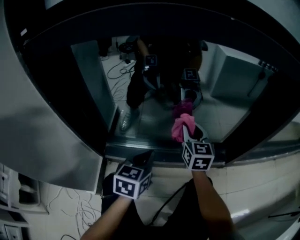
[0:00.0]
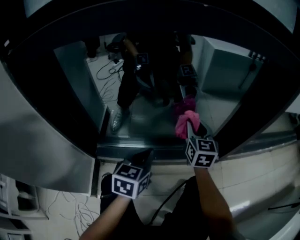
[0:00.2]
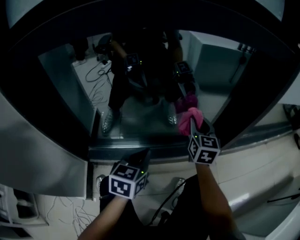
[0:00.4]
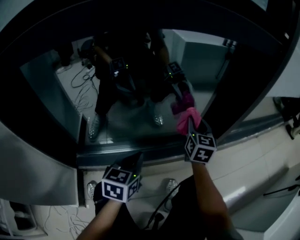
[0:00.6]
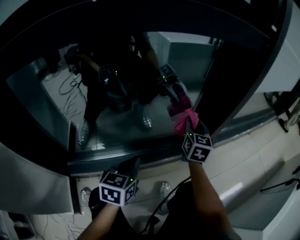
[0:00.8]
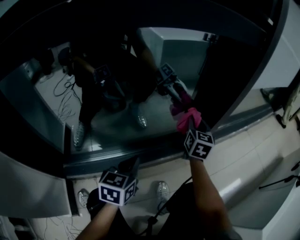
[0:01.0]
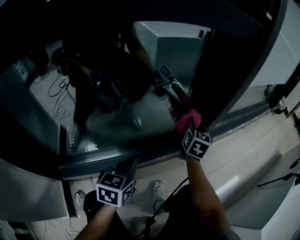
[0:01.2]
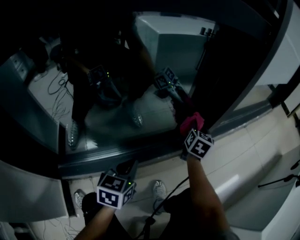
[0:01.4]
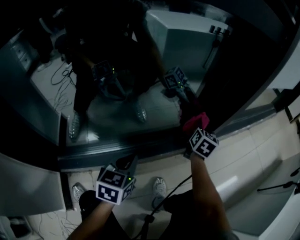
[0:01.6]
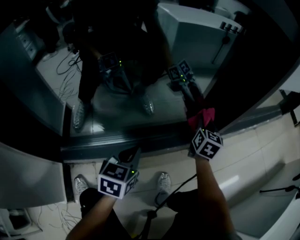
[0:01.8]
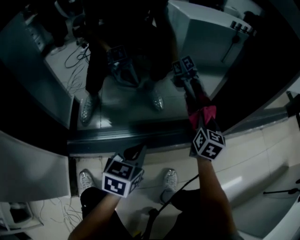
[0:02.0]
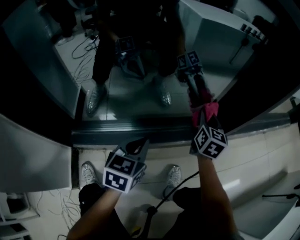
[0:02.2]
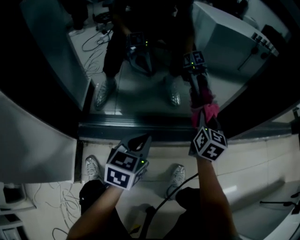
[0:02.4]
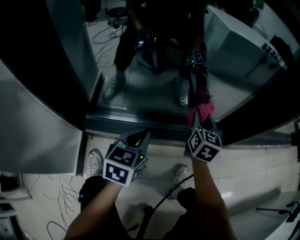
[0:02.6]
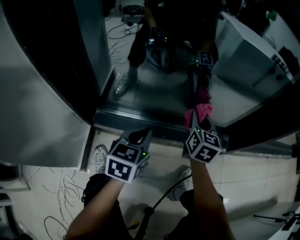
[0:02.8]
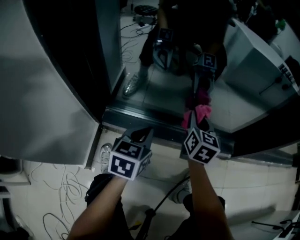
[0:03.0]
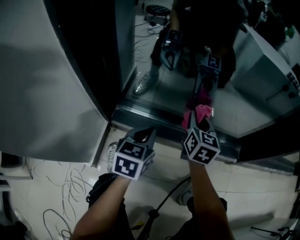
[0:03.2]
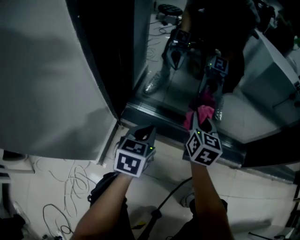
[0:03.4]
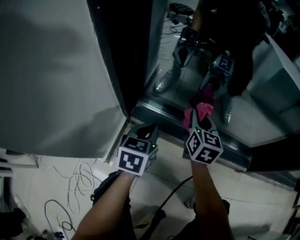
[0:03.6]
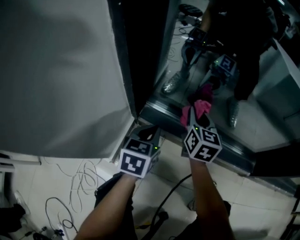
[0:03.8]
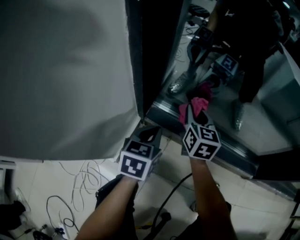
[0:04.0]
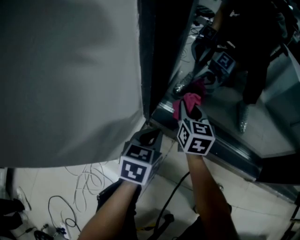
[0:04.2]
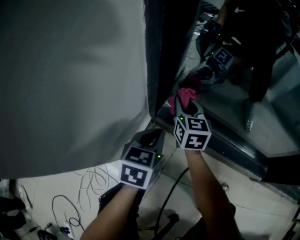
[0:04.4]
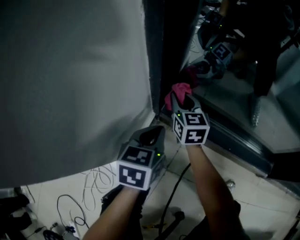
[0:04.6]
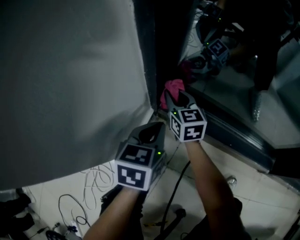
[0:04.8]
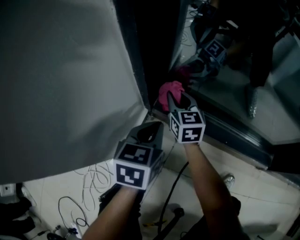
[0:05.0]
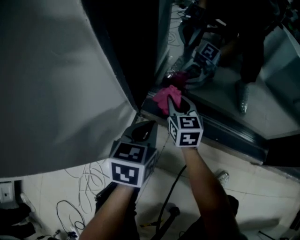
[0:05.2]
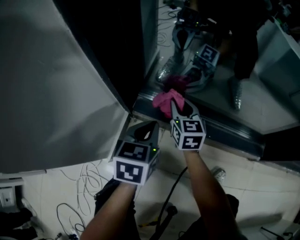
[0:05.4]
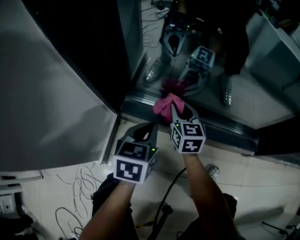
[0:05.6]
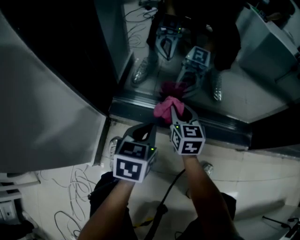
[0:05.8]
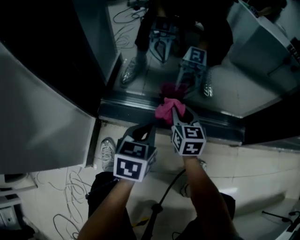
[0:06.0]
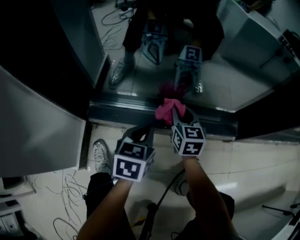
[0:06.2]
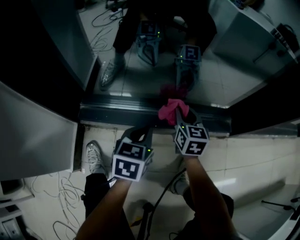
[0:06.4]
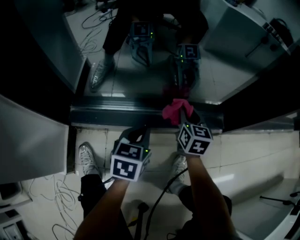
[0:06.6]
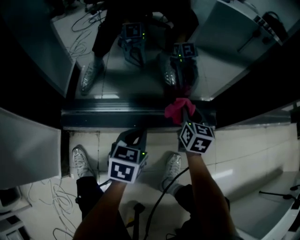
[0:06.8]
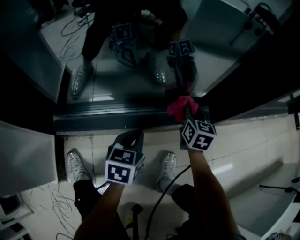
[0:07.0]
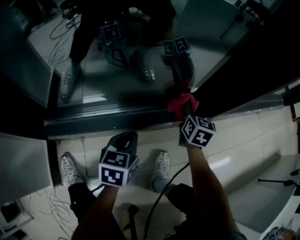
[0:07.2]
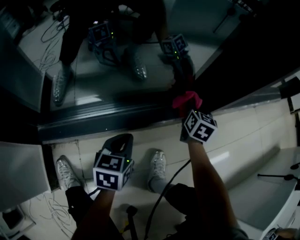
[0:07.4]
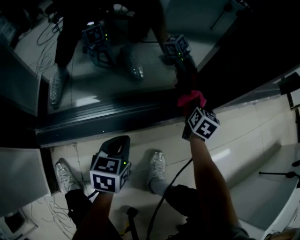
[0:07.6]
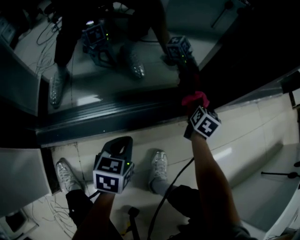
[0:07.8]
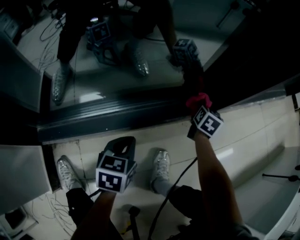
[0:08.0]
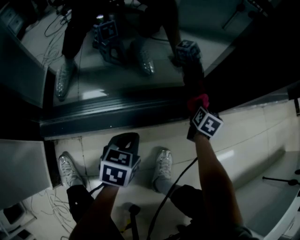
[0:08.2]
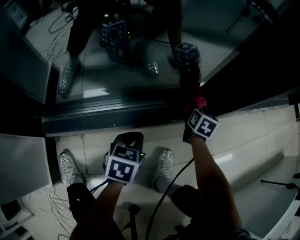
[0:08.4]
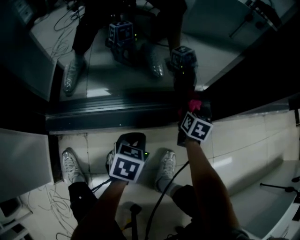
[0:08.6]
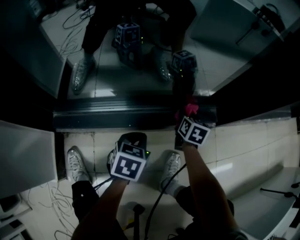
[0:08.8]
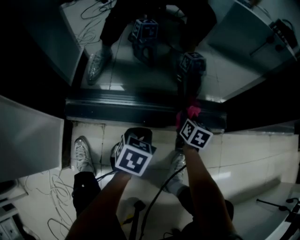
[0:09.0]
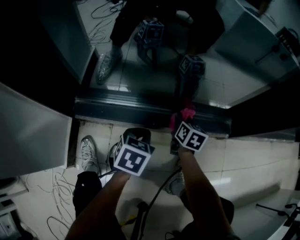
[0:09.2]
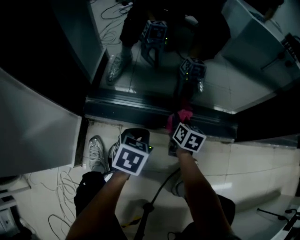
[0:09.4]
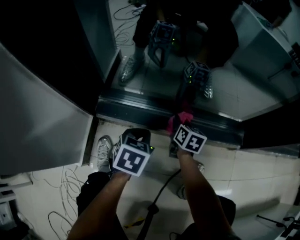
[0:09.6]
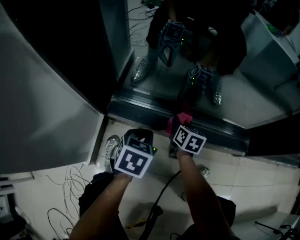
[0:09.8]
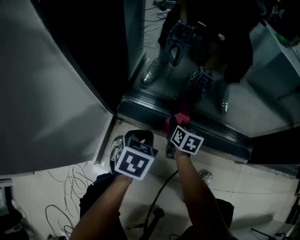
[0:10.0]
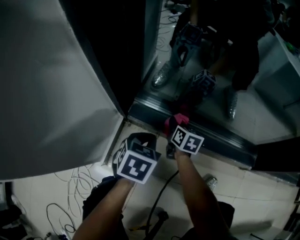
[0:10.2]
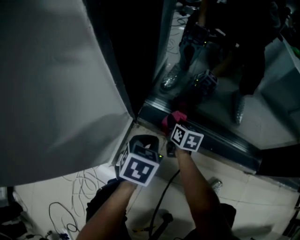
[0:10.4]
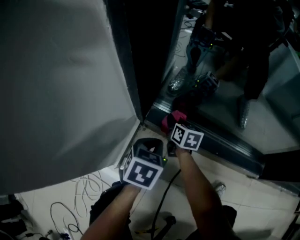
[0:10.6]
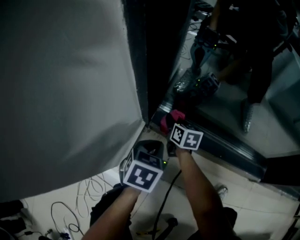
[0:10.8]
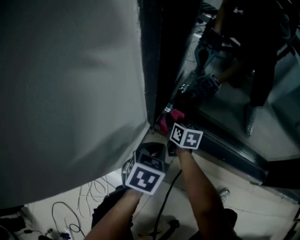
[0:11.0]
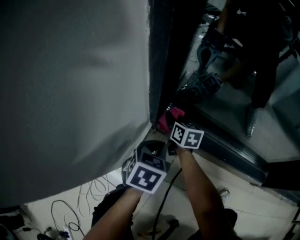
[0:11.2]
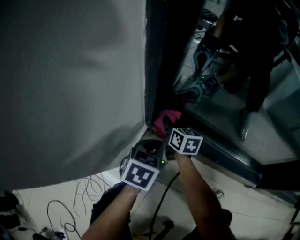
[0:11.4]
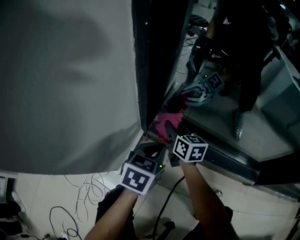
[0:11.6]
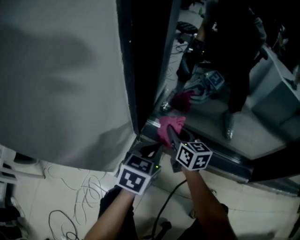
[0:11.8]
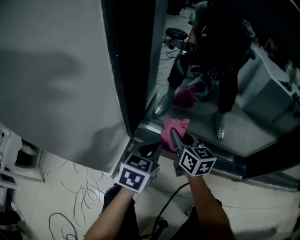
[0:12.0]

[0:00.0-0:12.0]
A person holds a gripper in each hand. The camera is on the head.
0:00.0 to 0:01.6: The left gripper shifts by about 20 cm, and swivels approximately 20 degrees; the right gripper shifts by roughly 40 cm, and changes its angle by about 50 degrees.
0:01.6 to 0:03.0: The left gripper ends up about 25 cm from where it was, and changes its angle by about 30 degrees. Meanwhile the right gripper changes place by roughly 40 cm, and changes its angle by about 40 degrees.
0:03.0 to 0:04.4: The left gripper travels to the left by roughly 20 cm, and swivels roughly 20 degrees, while the right gripper heads to the left, covering approximately 35 cm, and changes its angle by roughly 30 degrees.
0:04.4 to 0:06.0: The two grippers go roughly 25 cm to the right.
0:06.0 to 0:07.6: The right gripper ends up approximately 50 cm from where it was, and turns by roughly 50 degrees. Meanwhile the left gripper moves approximately 25 cm.
0:07.6 to 0:09.0: The left gripper is displaced to the left by approximately 5 cm; the right gripper is displaced to the left and backward by roughly 25 cm, and swivels roughly 30 degrees.
0:09.0 to 0:10.4: The left gripper ends up approximately 30 cm from where it was, and changes its angle by some 20 degrees; the right gripper changes place by some 40 cm, and rotates approximately 30 degrees.
0:10.4 to 0:12.0: The left gripper moves upward, some 15 cm, and swivels roughly 20 degrees. The right gripper travels upward by approximately 25 cm, and turns by approximately 30 degrees.

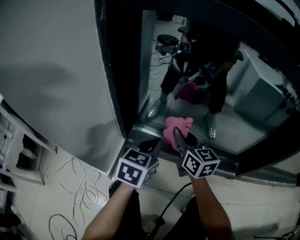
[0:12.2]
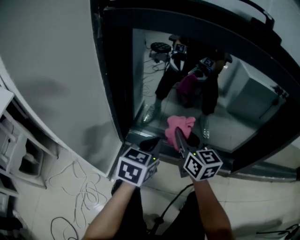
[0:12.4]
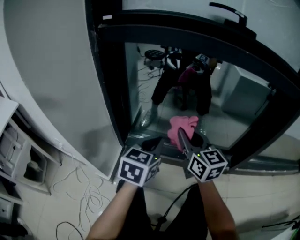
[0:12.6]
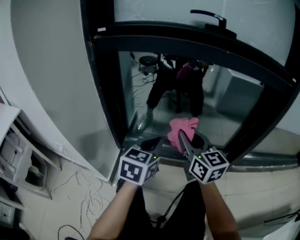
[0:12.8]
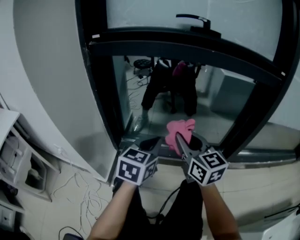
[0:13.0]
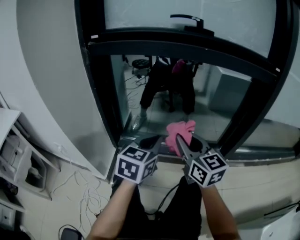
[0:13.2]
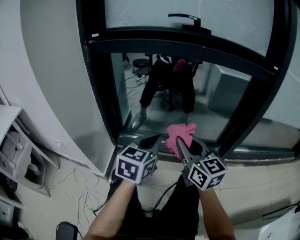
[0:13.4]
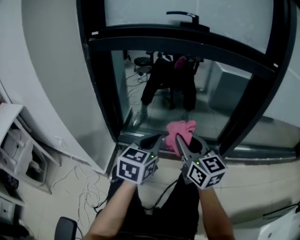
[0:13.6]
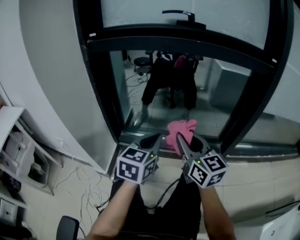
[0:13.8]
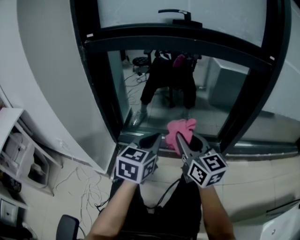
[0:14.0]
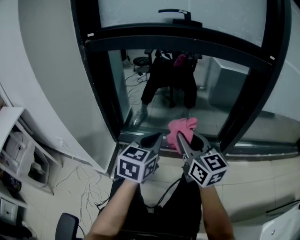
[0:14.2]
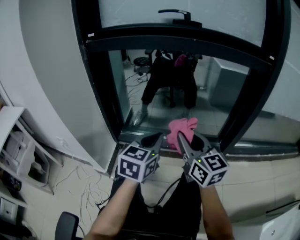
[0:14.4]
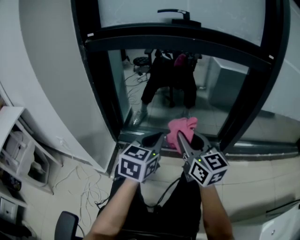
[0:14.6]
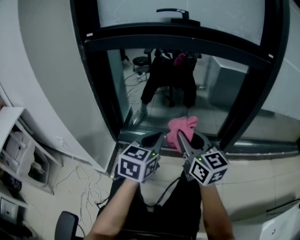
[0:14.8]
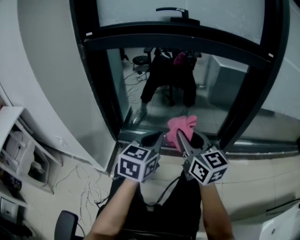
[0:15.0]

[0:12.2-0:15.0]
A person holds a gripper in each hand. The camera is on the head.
0:12.2 to 0:13.6: The grippers both shift backward, upward and to the right by about 25 cm.
0:13.6 to 0:15.0: There are only small adjustments of the grippers.

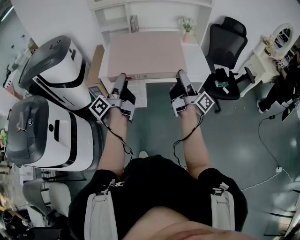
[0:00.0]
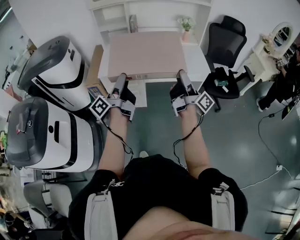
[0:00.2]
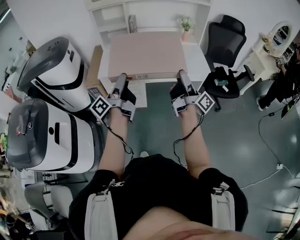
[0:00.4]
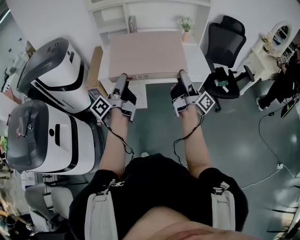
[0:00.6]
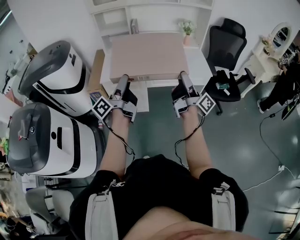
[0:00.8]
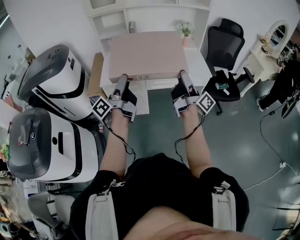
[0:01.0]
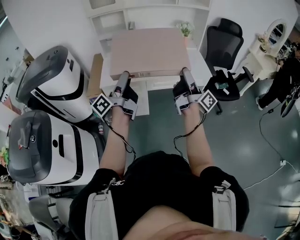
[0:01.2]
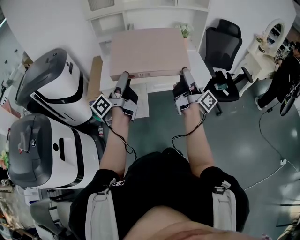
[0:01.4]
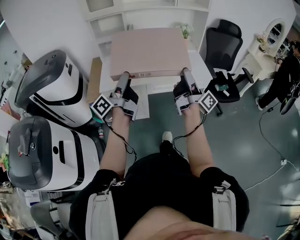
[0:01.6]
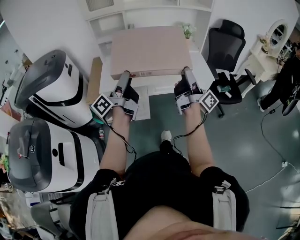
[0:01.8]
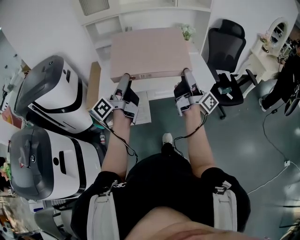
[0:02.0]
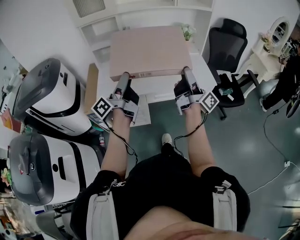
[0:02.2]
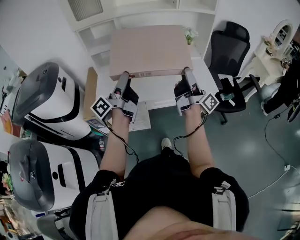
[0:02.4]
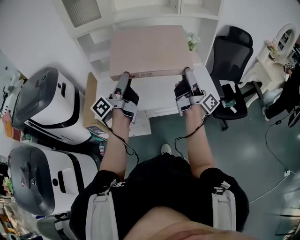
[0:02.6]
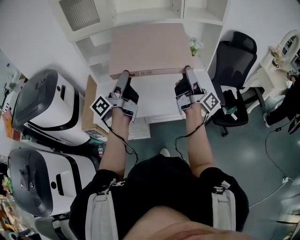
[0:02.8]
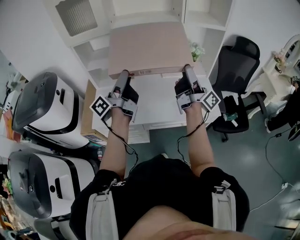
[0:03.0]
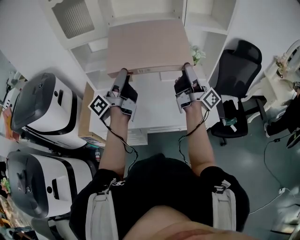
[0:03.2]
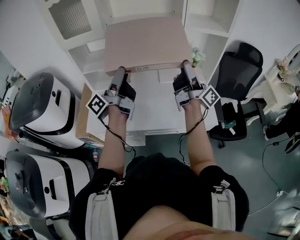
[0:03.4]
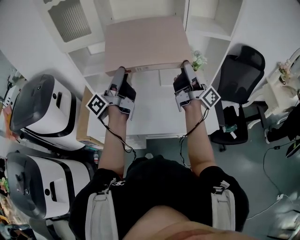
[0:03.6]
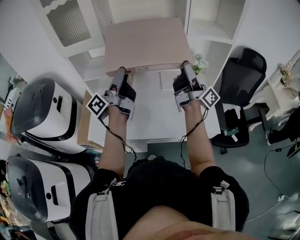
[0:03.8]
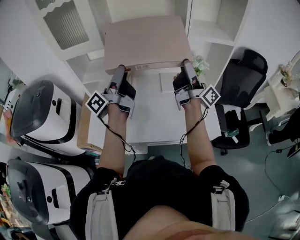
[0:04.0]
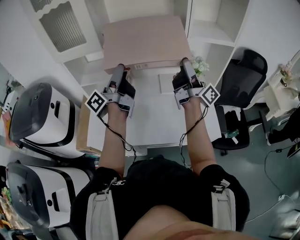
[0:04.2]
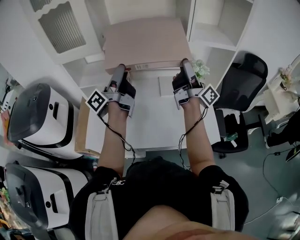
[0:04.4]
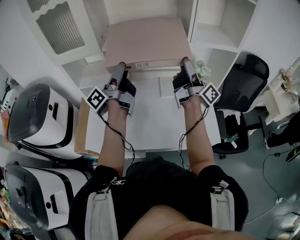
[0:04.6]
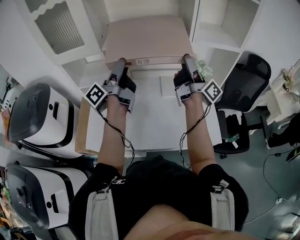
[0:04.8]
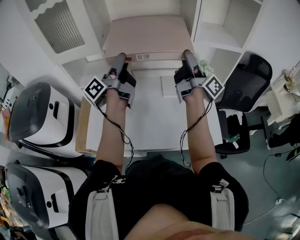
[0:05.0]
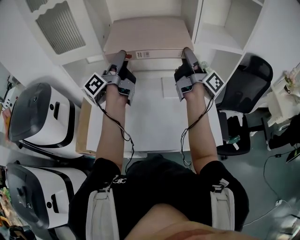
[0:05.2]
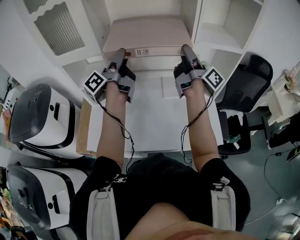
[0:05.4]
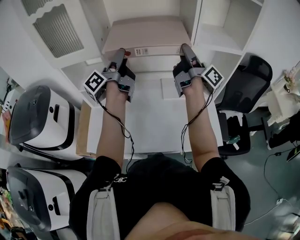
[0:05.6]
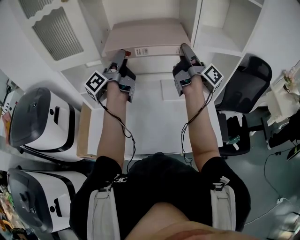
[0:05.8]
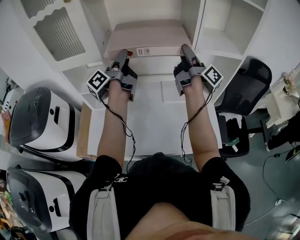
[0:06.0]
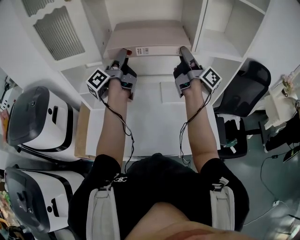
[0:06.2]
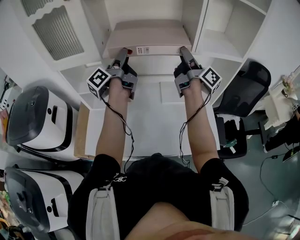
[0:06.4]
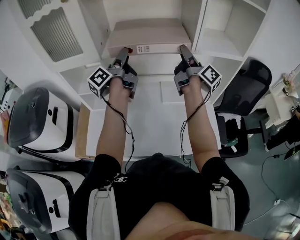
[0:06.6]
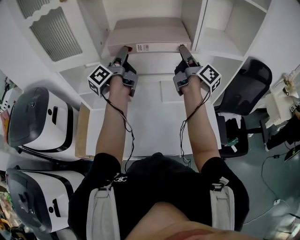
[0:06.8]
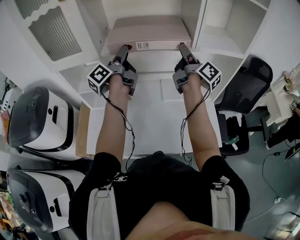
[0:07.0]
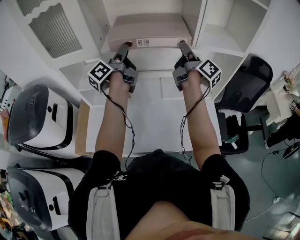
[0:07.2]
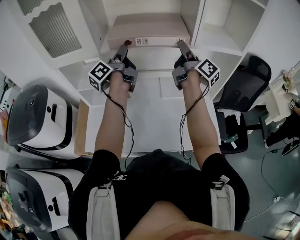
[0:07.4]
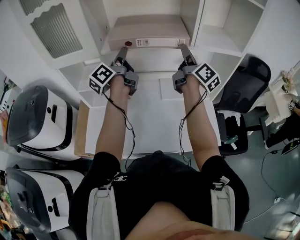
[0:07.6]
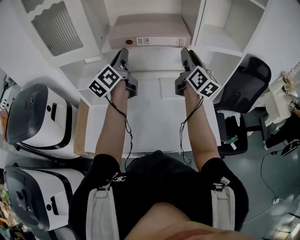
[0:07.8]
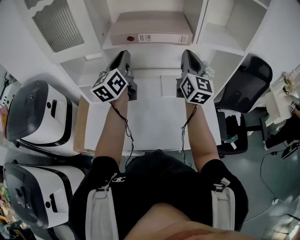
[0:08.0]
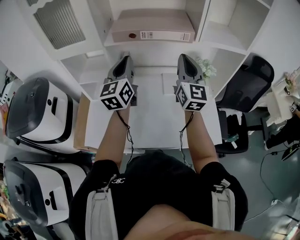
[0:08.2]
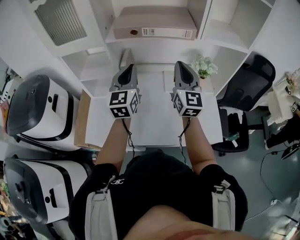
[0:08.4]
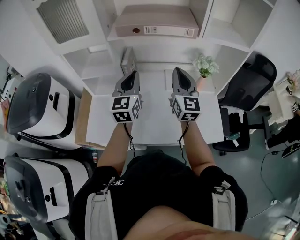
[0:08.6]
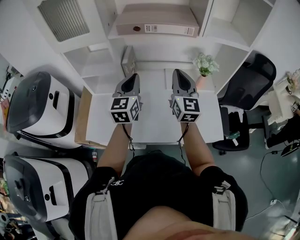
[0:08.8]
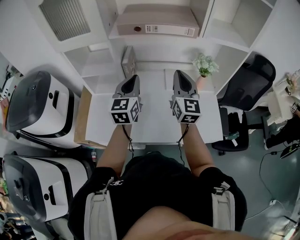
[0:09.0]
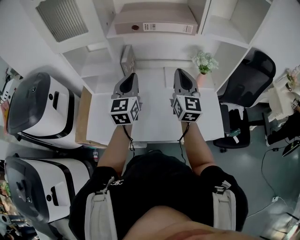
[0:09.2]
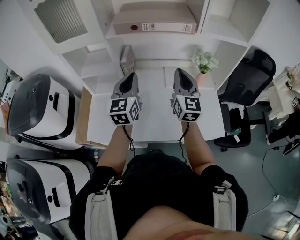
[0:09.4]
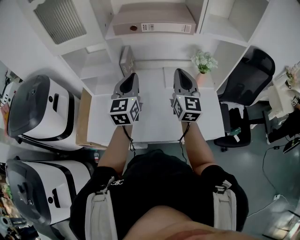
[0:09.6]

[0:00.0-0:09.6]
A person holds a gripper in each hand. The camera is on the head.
0:00.0 to 0:01.6: Both grippers travel together forward, roughly 5 cm.
0:01.6 to 0:03.2: The grippers both shift forward by some 35 cm.
0:03.2 to 0:04.8: Both grippers move forward, some 20 cm.
0:04.8 to 0:06.4: The two grippers go some 10 cm forward.
0:06.4 to 0:08.0: The right gripper is displaced backward by about 5 cm, twists some 70 degrees counterclockwise, seen from behind, and closes. The left gripper rolls clockwise, seen from behind, by about 50 degrees, and closes up.
0:08.0 to 0:09.6: Both grippers move downward and backward, about 15 cm. The left gripper changes its angle by roughly 20 degrees.
